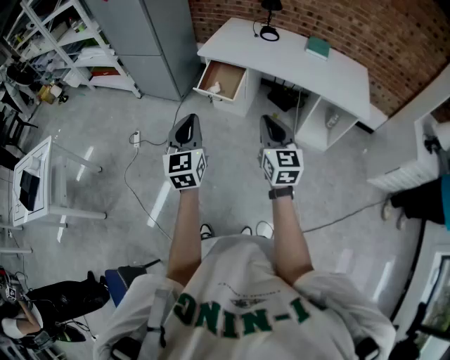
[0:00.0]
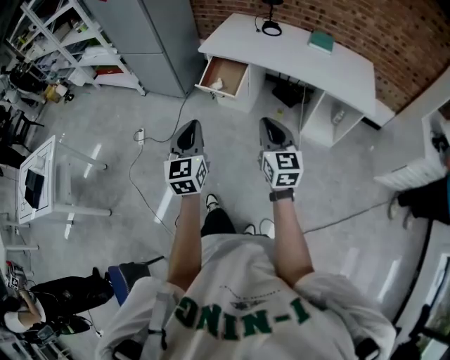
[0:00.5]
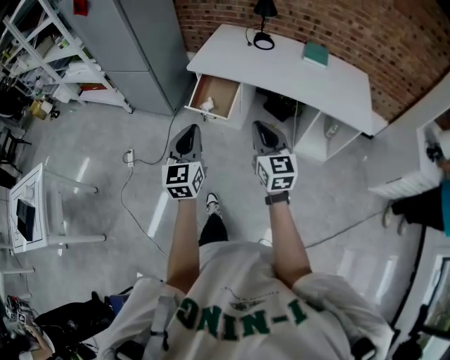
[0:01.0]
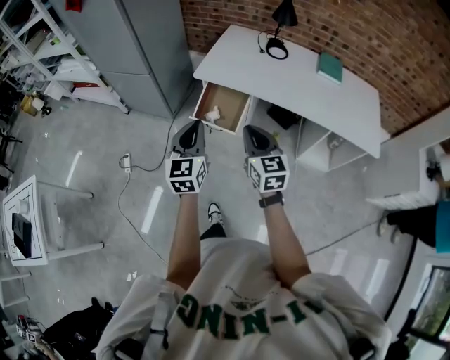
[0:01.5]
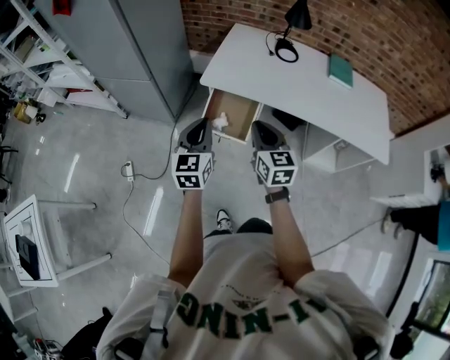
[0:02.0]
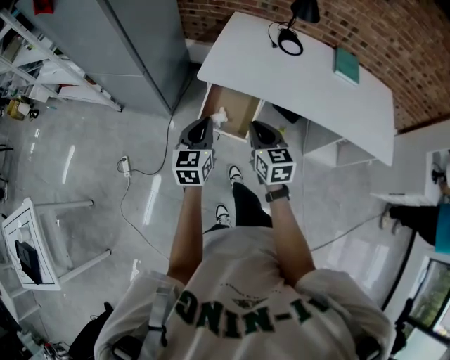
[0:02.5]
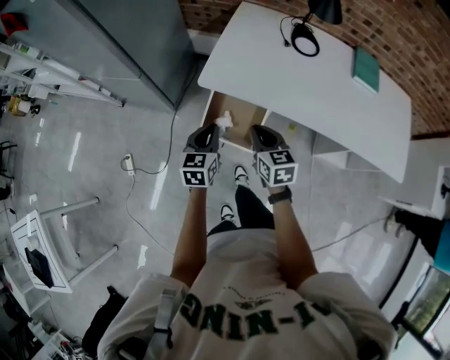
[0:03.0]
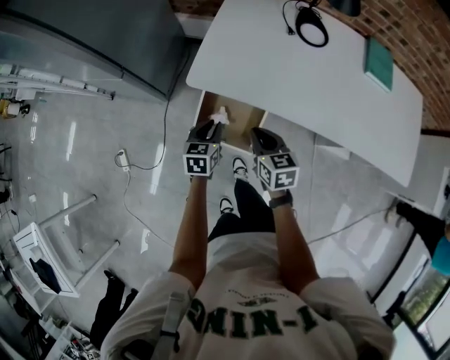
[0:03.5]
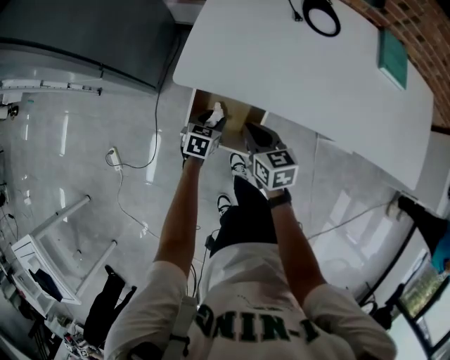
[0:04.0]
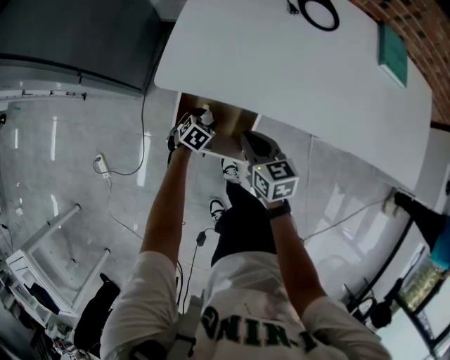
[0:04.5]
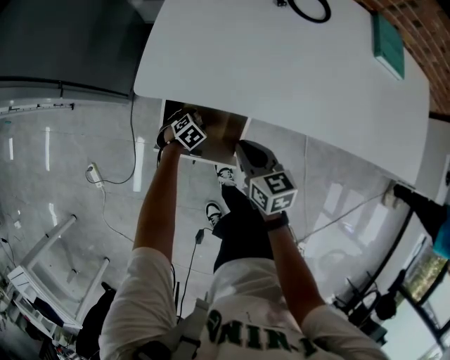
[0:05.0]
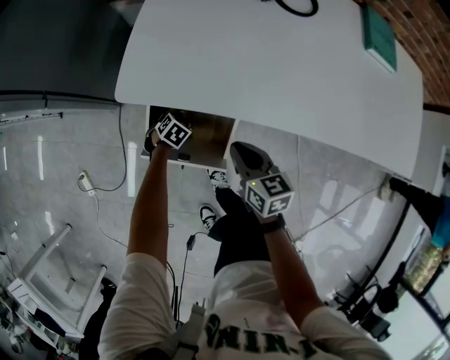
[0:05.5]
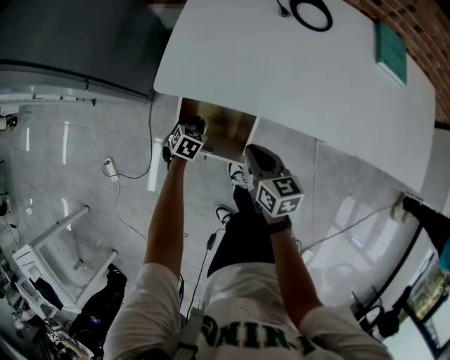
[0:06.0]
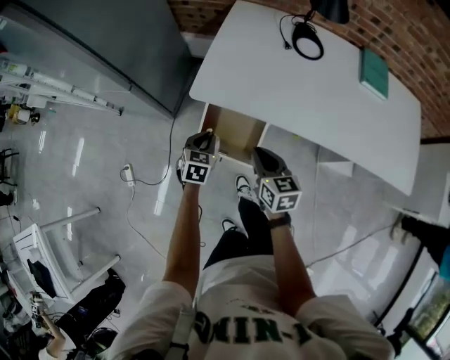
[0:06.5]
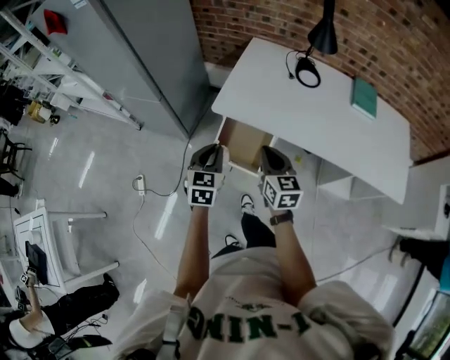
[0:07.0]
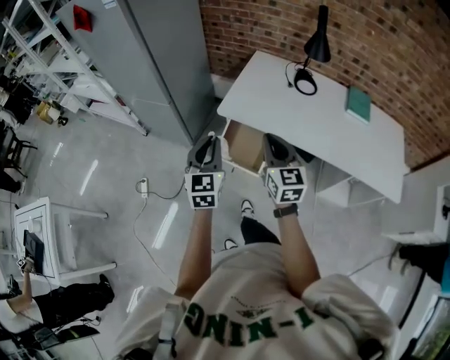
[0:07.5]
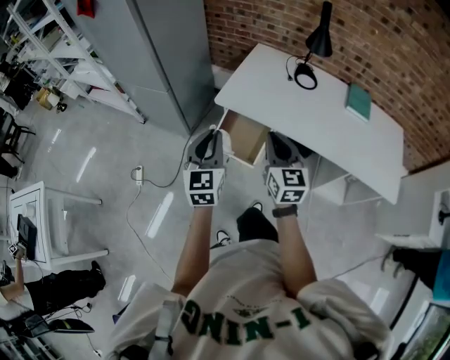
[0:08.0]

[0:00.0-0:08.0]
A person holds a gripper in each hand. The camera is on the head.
0:00.0 to 0:02.0: Both grippers travel together forward, approximately 40 cm.
0:02.0 to 0:04.0: The grippers both shift downward and forward by about 40 cm. The left gripper tips its fingers downward by some 40 degrees, and opens, while the right gripper changes its angle by roughly 30 degrees.
0:04.0 to 0:06.0: The right gripper is displaced to the right by some 5 cm, while the left gripper moves downward, about 5 cm, and closes its fingers.
0:06.0 to 0:08.0: The right gripper is displaced upward and backward by about 35 cm, and changes its angle by about 40 degrees. The left gripper heads upward and backward, covering some 60 cm, and tilts its fingers approximately 50 degrees upward.

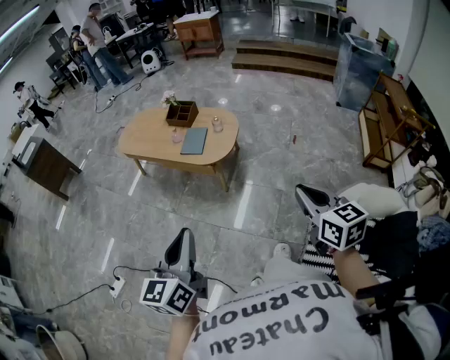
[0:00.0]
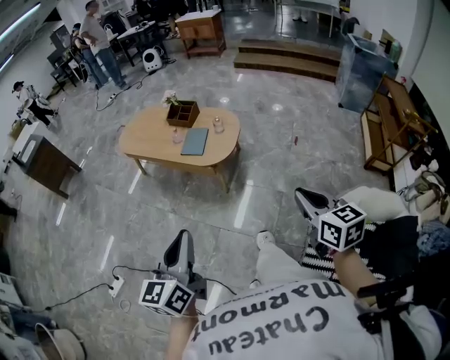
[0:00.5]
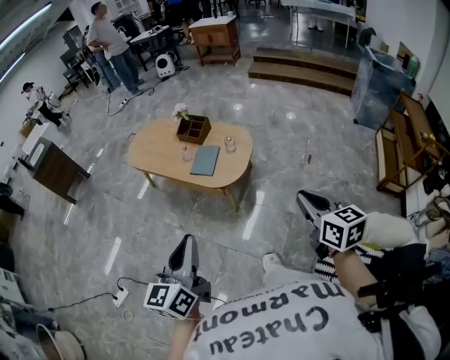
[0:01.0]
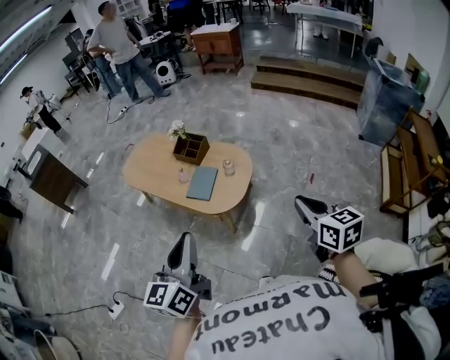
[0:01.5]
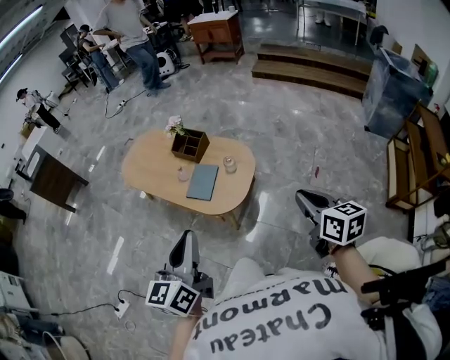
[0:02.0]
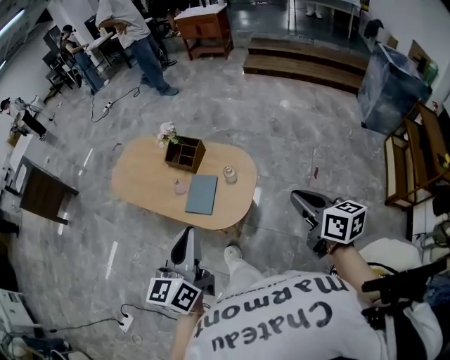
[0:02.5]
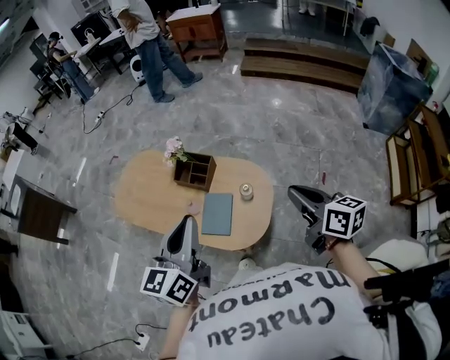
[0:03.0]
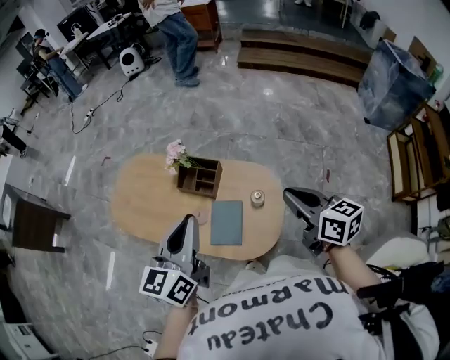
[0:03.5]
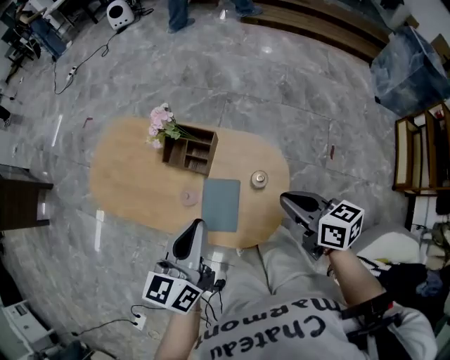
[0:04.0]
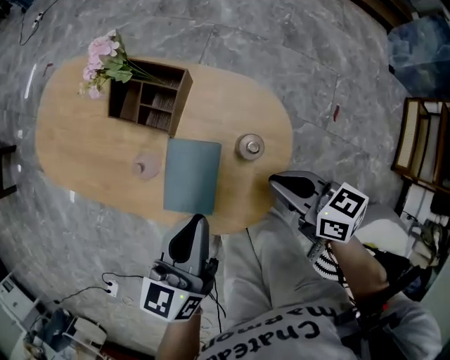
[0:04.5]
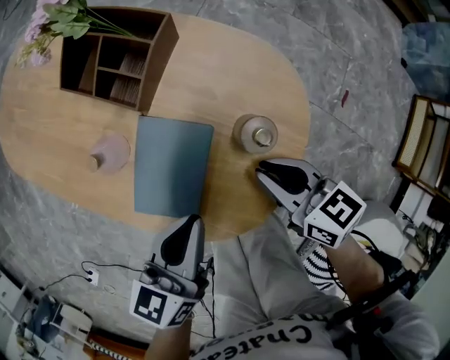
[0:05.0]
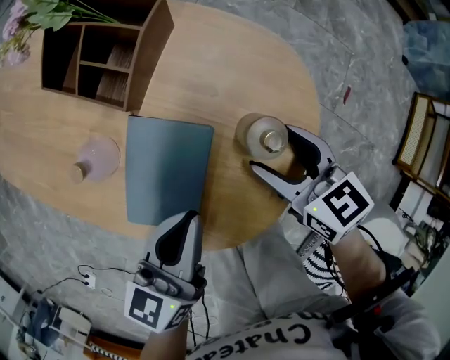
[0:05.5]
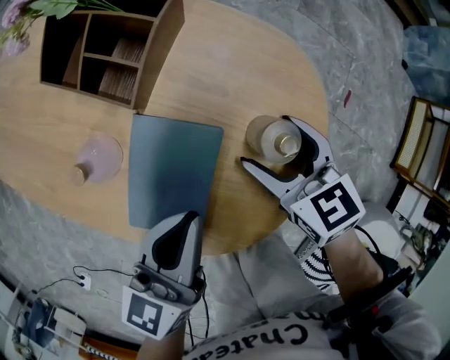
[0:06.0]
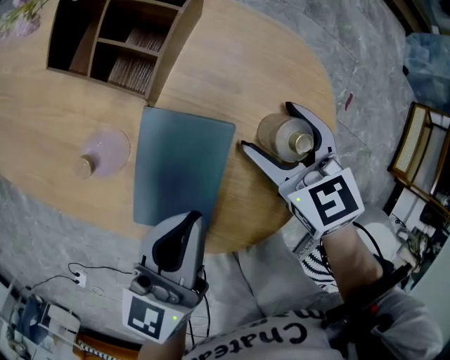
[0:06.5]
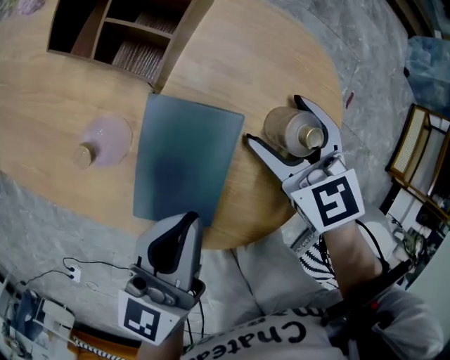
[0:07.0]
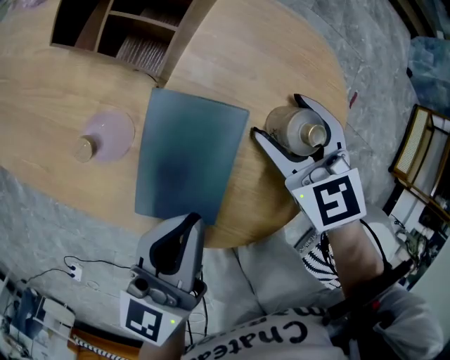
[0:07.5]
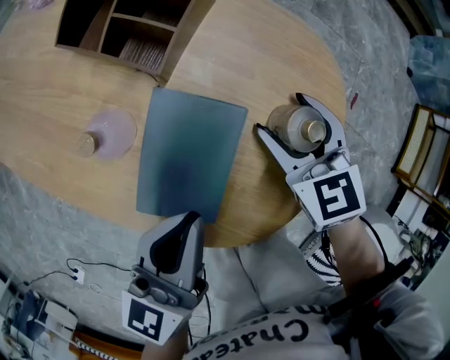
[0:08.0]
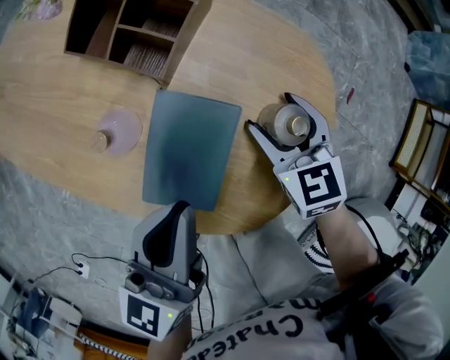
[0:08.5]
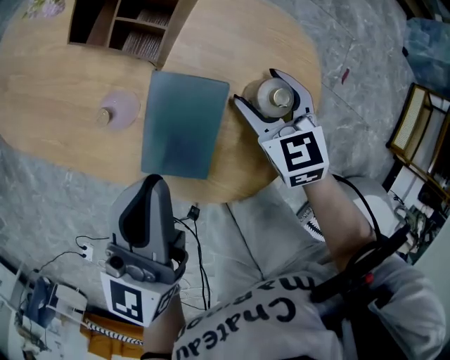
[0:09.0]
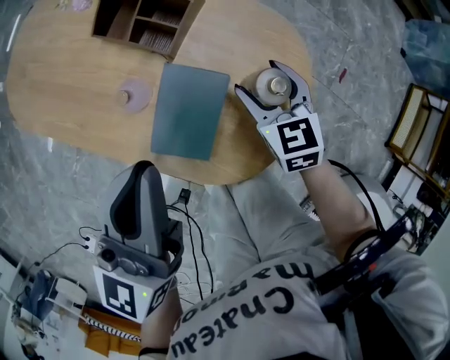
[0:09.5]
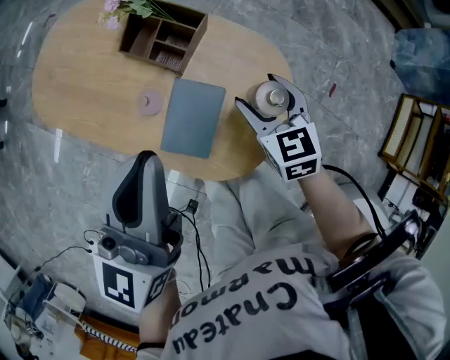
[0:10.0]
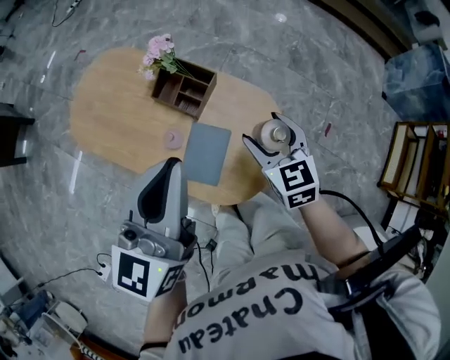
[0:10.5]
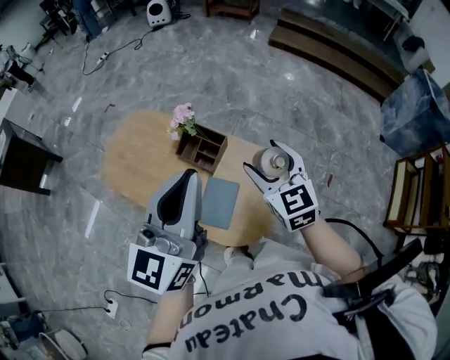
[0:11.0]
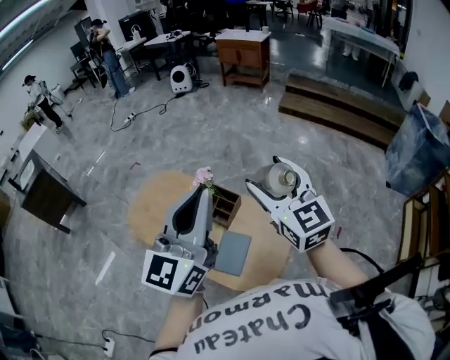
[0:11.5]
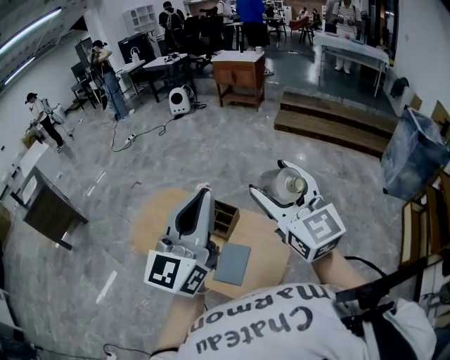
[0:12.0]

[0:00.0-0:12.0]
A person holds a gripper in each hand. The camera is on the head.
0:00.0 to 0:02.0: The grippers both shift forward by some 35 cm.
0:02.0 to 0:04.0: The left gripper goes some 40 cm forward, and rotates some 20 degrees. The right gripper is displaced forward and to the left by roughly 40 cm.
0:04.0 to 0:06.0: The two grippers go roughly 30 cm downward. The right gripper rotates some 30 degrees, and opens its fingers.
0:06.0 to 0:08.0: The grippers make only small movements.
0:08.0 to 0:10.0: The left gripper shifts approximately 25 cm upward. Meanwhile the right gripper heads upward, covering approximately 15 cm.
0:10.0 to 0:12.0: Both grippers travel together upward, about 40 cm. The right gripper angles its fingers upward, by approximately 40 degrees, while the left gripper turns by roughly 30 degrees.

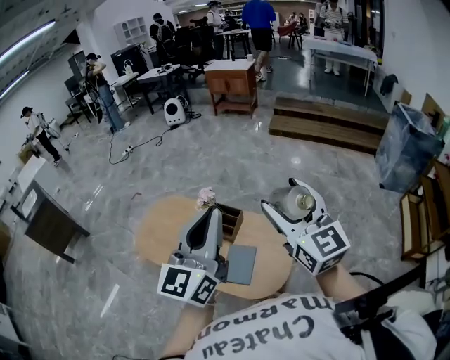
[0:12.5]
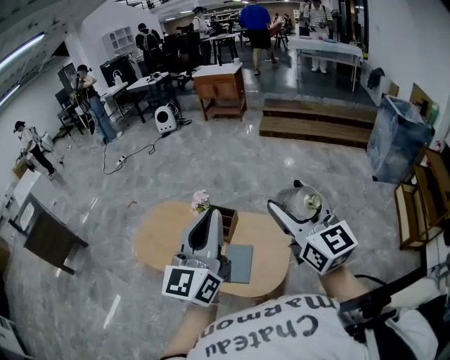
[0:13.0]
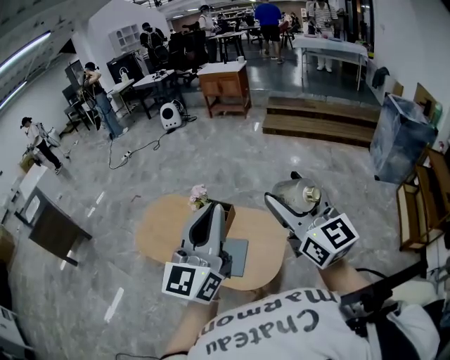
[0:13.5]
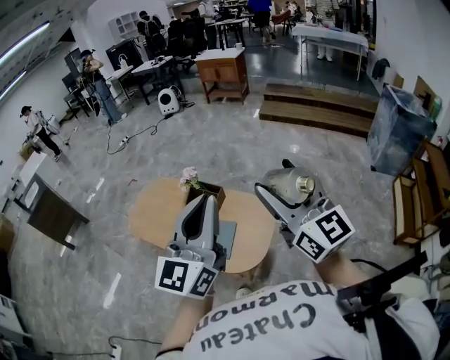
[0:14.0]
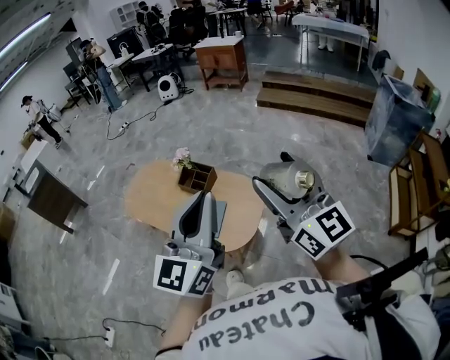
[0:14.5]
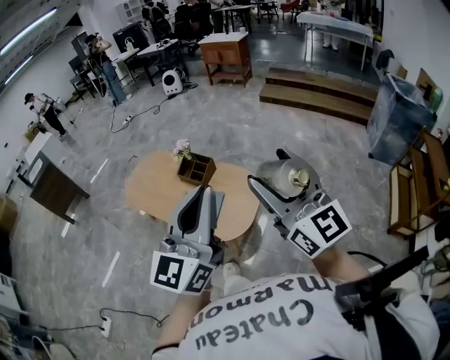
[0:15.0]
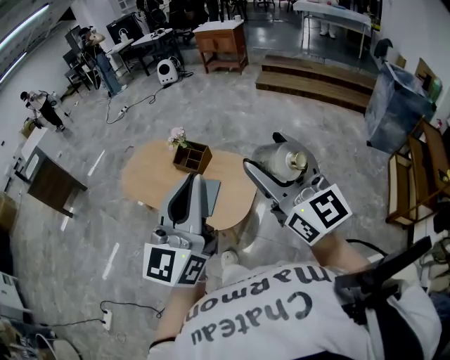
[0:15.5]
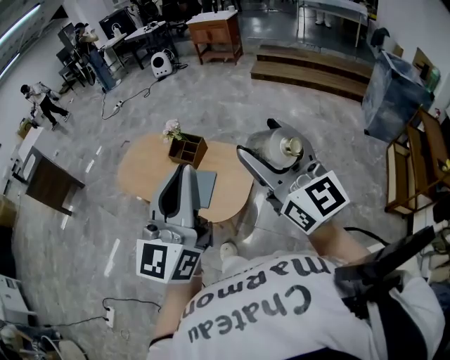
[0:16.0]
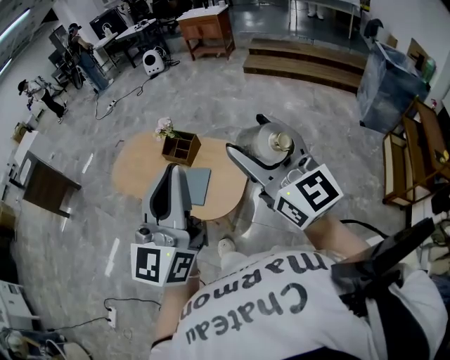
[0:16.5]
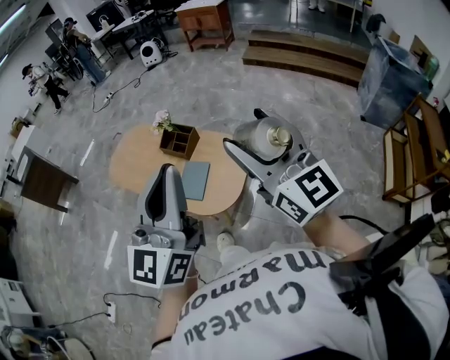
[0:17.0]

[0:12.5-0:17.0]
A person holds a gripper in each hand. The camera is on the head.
0:12.5 to 0:14.5: The two grippers go approximately 25 cm backward and to the right.
0:14.5 to 0:17.0: The grippers stay close to where they were, moving slightly.

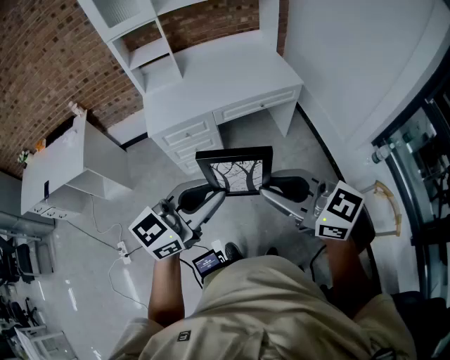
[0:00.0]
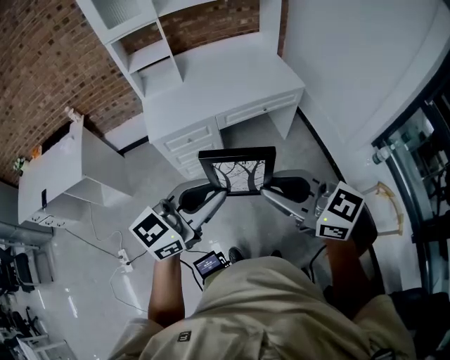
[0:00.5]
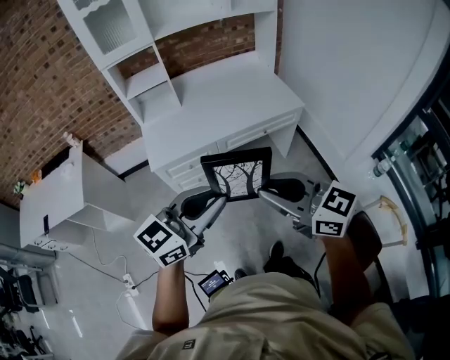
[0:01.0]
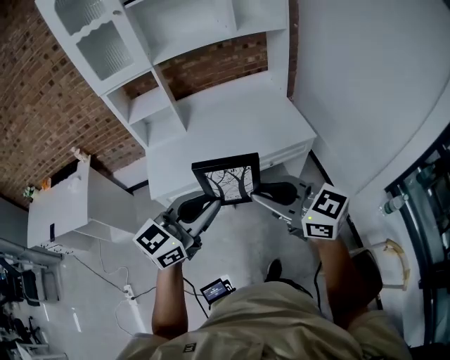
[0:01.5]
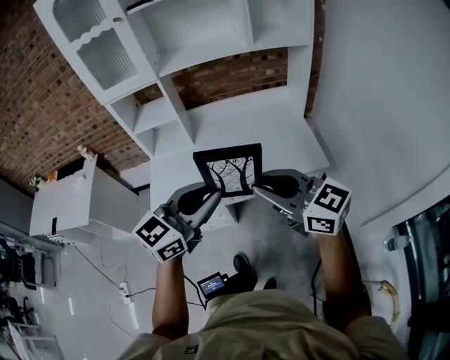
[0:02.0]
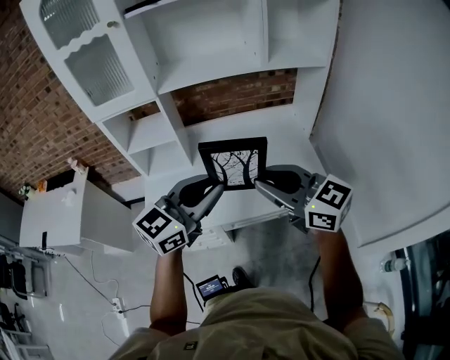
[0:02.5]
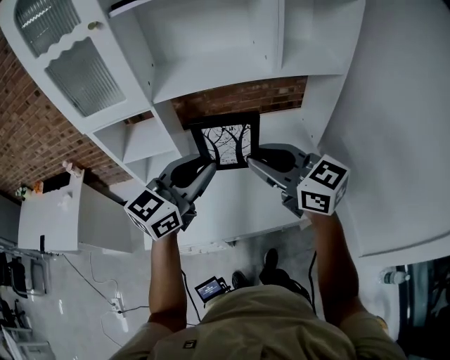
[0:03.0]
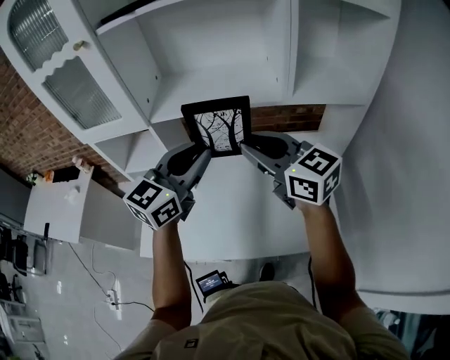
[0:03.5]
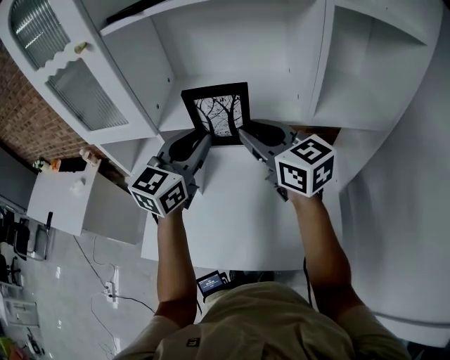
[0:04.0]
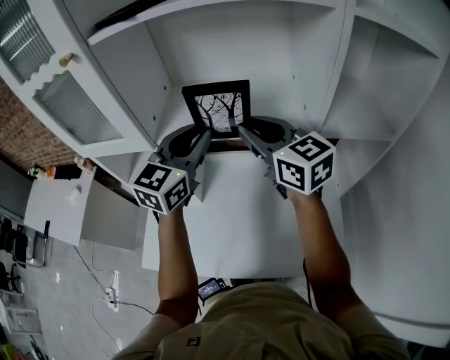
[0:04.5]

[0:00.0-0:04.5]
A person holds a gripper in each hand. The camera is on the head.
0:00.0 to 0:02.0: Both grippers move forward, about 40 cm.
0:02.0 to 0:04.5: The two grippers travel together, forward, roughly 50 cm. The left gripper changes its angle by about 30 degrees.
